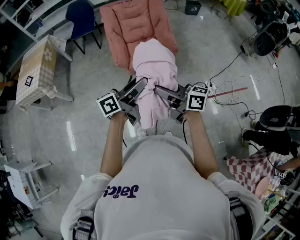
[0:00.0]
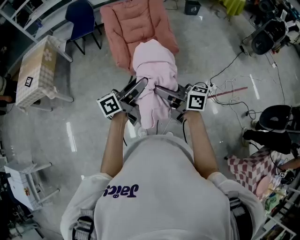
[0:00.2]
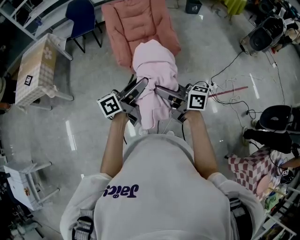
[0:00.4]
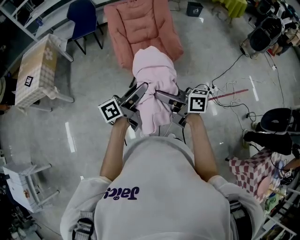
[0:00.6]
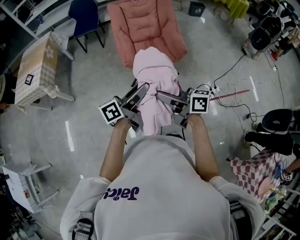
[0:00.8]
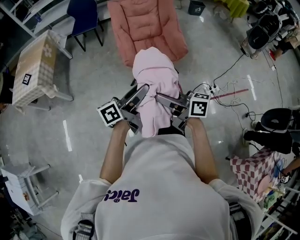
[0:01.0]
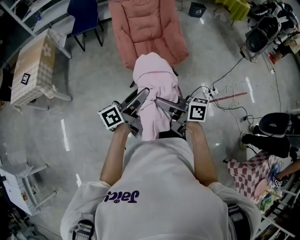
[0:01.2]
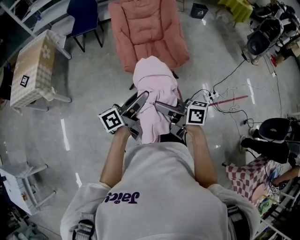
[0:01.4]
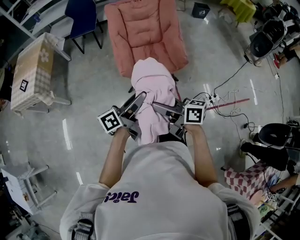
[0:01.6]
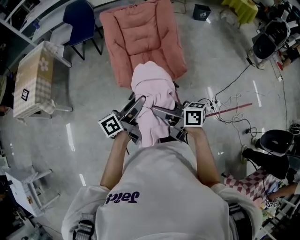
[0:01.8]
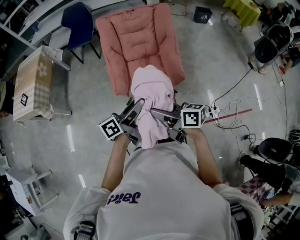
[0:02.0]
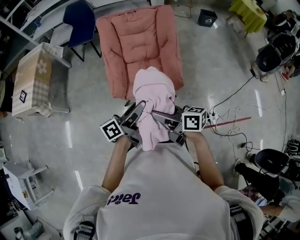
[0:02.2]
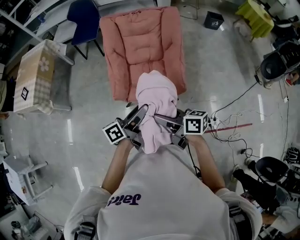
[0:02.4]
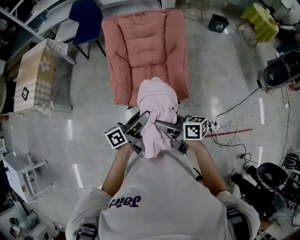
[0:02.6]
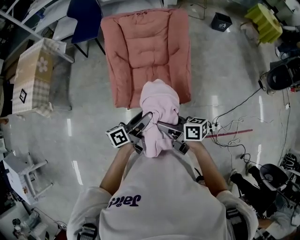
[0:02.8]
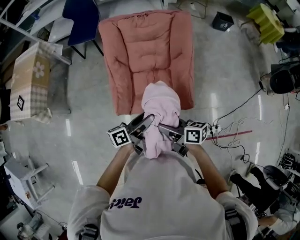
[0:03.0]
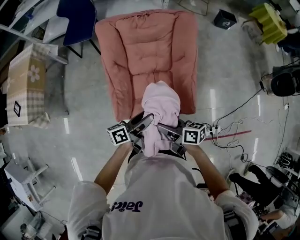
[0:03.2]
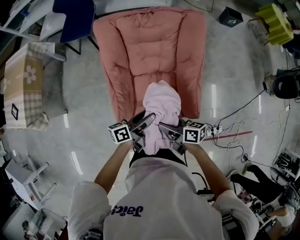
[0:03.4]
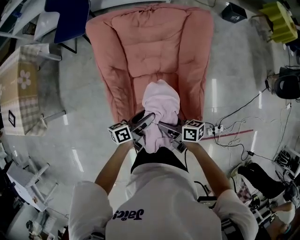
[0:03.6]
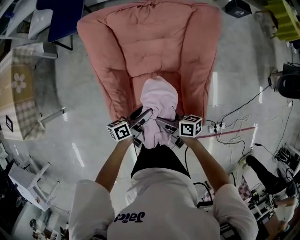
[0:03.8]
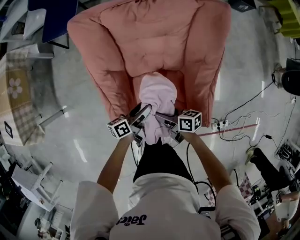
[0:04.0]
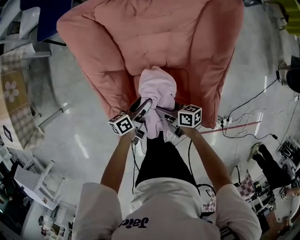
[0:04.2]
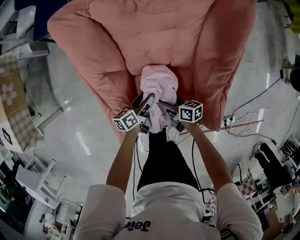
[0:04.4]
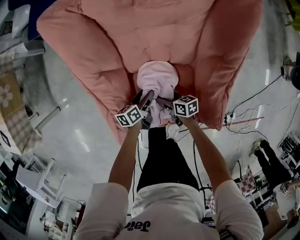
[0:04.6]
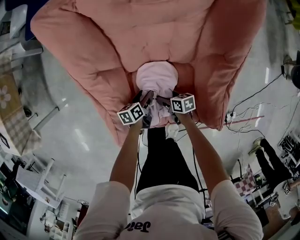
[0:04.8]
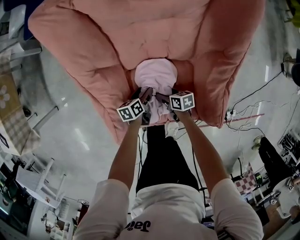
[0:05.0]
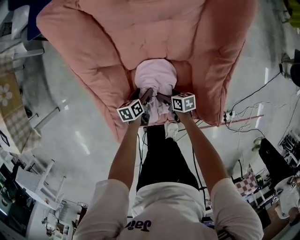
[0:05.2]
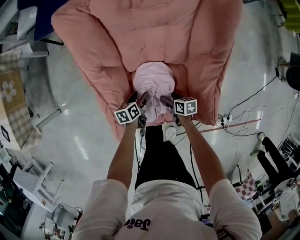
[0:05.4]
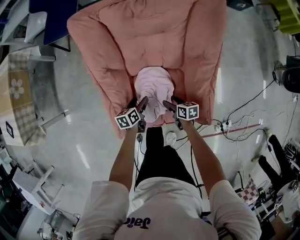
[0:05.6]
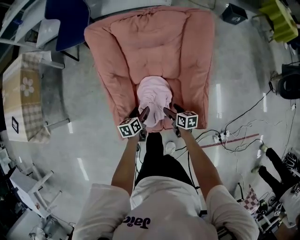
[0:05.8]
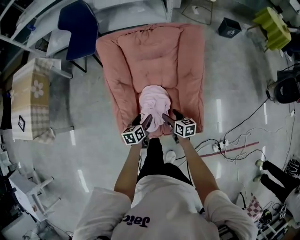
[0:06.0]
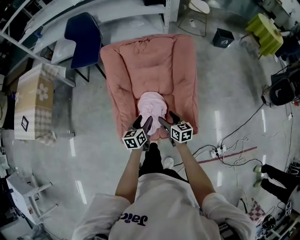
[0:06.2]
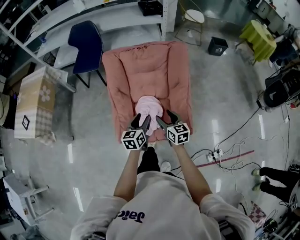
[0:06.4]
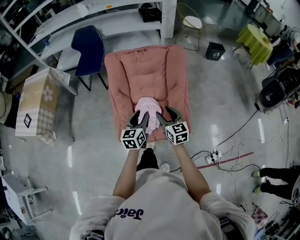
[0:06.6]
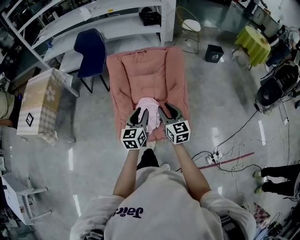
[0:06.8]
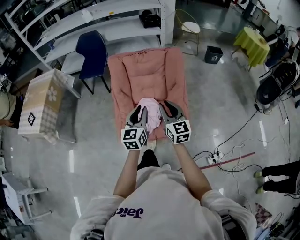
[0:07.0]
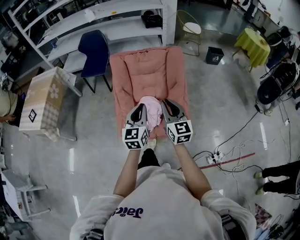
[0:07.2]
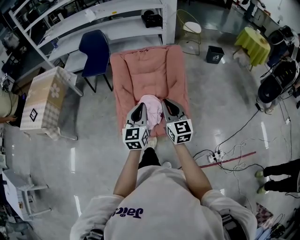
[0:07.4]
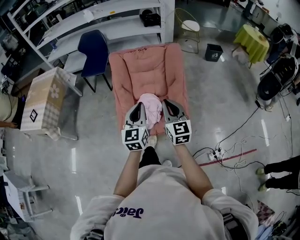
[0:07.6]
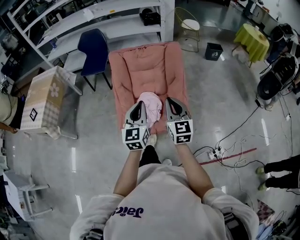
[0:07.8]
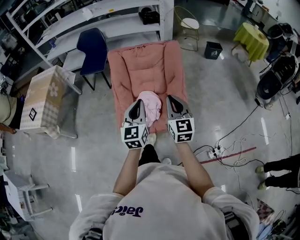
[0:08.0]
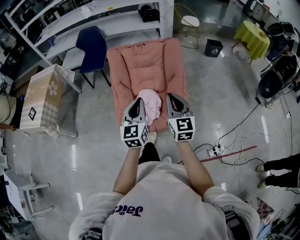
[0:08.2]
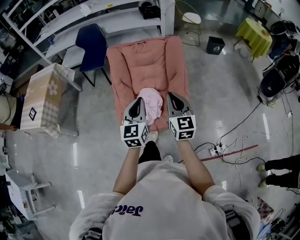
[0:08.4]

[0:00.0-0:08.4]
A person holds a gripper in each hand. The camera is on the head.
0:00.0 to 0:01.4: The left gripper moves to the left, forward and downward, about 10 cm, while the right gripper travels to the left and forward by some 10 cm.
0:01.4 to 0:02.8: Both grippers travel together forward and to the right, approximately 35 cm. The right gripper rotates roughly 20 degrees.
0:02.8 to 0:04.2: Both grippers travel together downward and forward, roughly 50 cm.
0:04.2 to 0:05.6: The right gripper is displaced downward and to the right by about 10 cm, and turns by about 20 degrees, while the left gripper goes about 5 cm downward, and rotates about 30 degrees.
0:05.6 to 0:07.0: The right gripper moves upward, roughly 50 cm, tilts its fingers roughly 40 degrees upward, and closes up, while the left gripper moves upward and backward, about 50 cm, tilts its fingers roughly 40 degrees upward, and closes up.

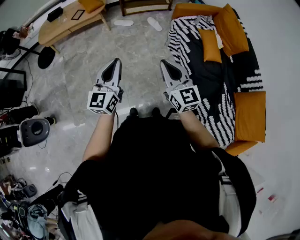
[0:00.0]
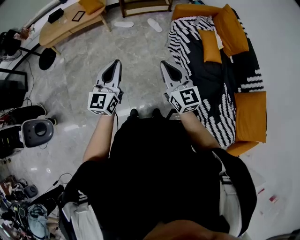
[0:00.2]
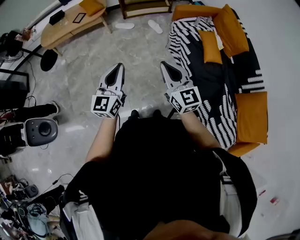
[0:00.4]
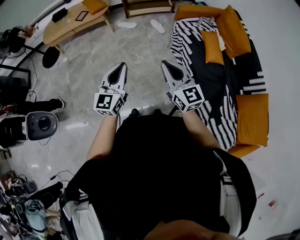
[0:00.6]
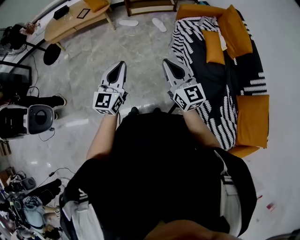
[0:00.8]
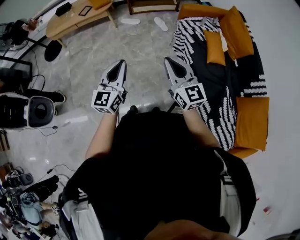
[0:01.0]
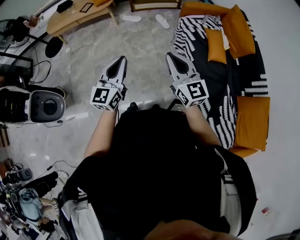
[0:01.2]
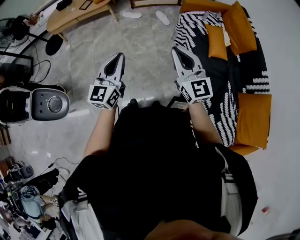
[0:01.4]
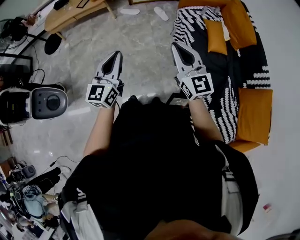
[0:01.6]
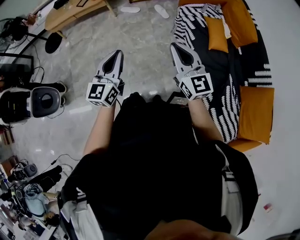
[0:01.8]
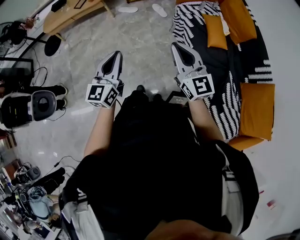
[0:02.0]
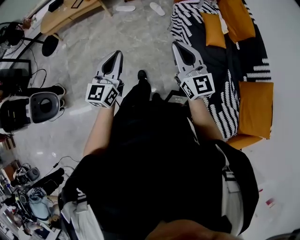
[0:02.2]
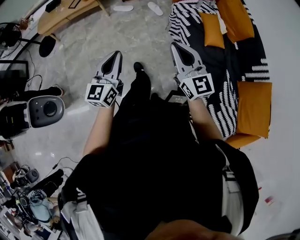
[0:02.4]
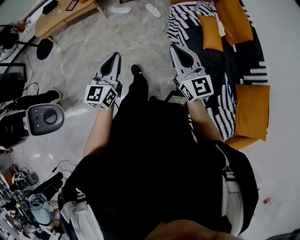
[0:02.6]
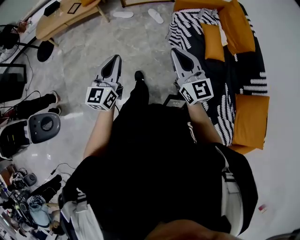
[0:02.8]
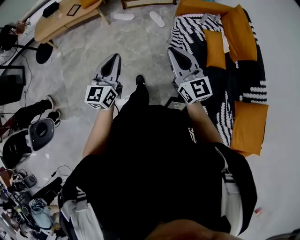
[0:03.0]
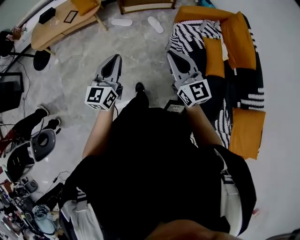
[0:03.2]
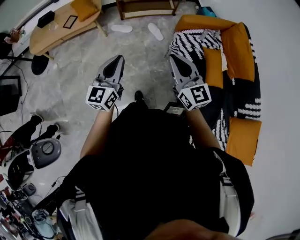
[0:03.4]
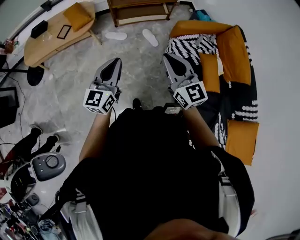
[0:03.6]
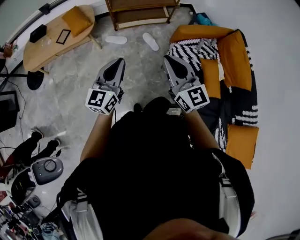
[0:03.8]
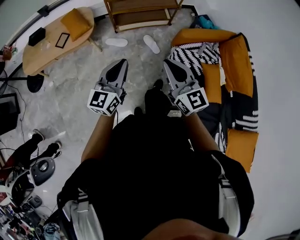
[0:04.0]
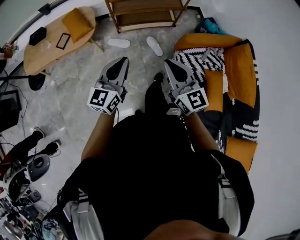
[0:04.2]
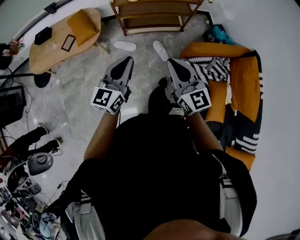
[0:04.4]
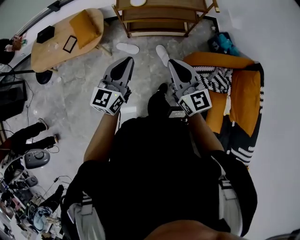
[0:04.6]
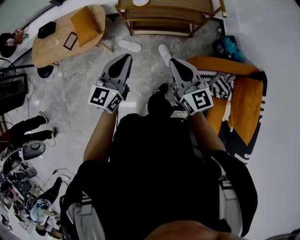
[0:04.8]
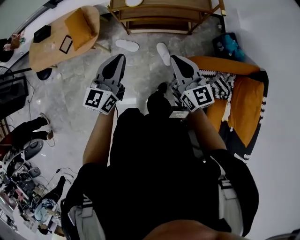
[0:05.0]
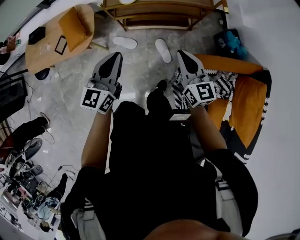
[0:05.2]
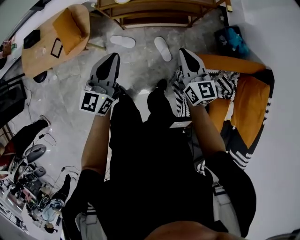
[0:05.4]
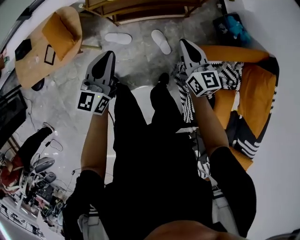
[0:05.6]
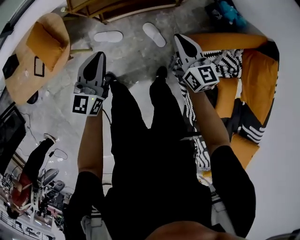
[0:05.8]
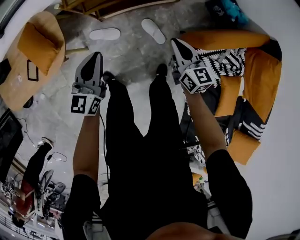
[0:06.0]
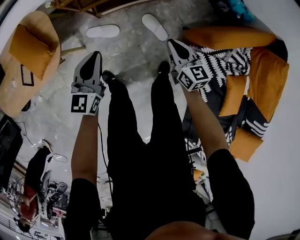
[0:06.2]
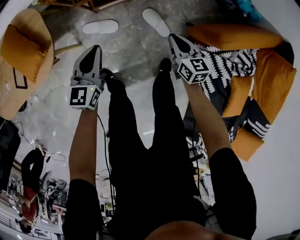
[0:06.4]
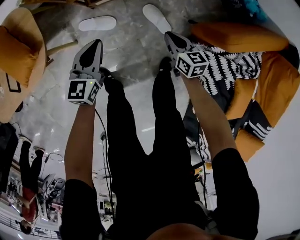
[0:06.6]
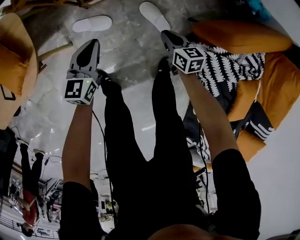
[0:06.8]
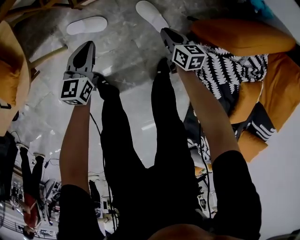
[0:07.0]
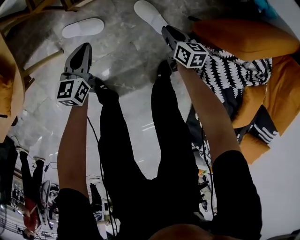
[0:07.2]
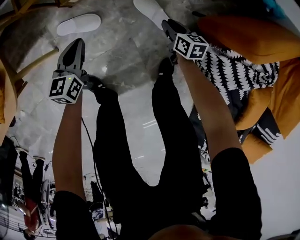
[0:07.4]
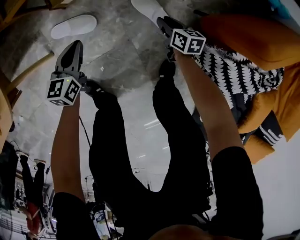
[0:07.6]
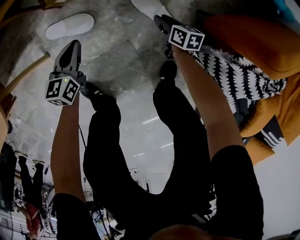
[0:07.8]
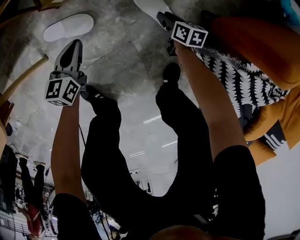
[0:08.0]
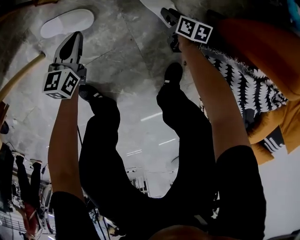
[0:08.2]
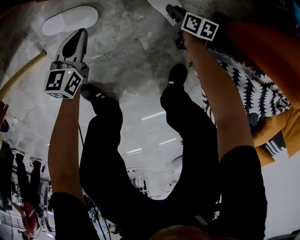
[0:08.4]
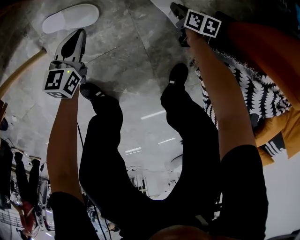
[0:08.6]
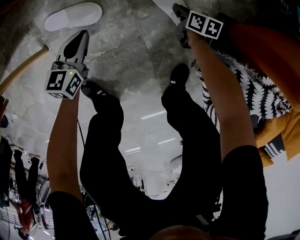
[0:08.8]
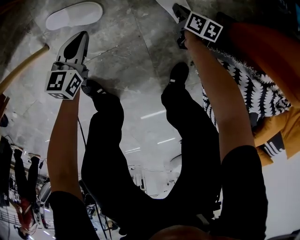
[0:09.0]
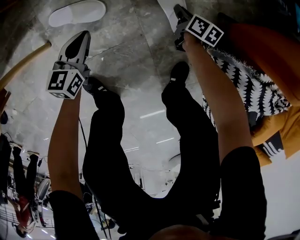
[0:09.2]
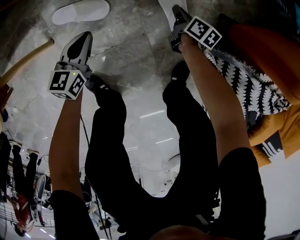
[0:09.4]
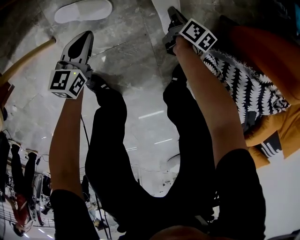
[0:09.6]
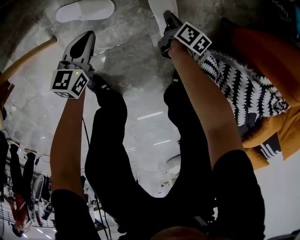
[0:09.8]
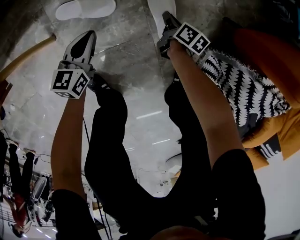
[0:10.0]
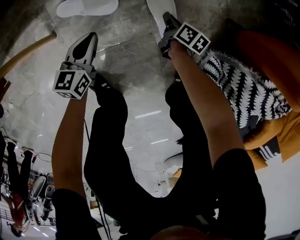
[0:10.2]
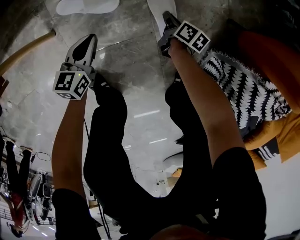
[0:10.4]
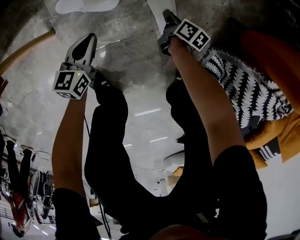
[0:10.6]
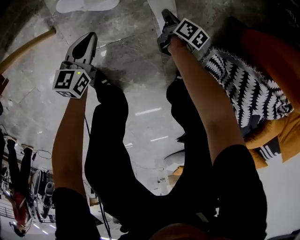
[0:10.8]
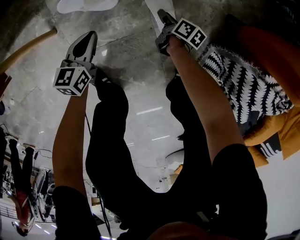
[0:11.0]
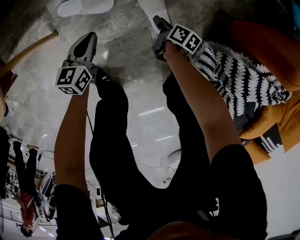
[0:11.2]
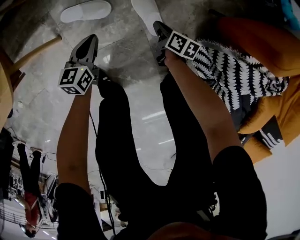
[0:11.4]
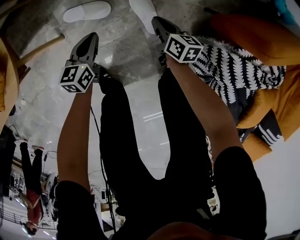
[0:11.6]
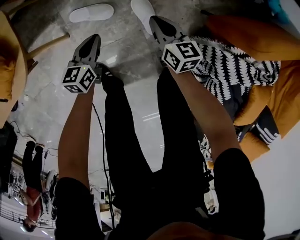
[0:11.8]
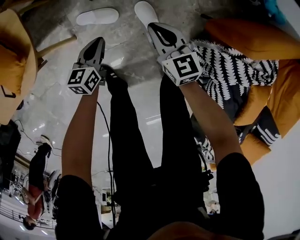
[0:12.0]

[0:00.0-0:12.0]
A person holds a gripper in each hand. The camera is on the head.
0:00.0 to 0:01.6: The left gripper heads to the right and backward, covering about 10 cm, while the right gripper heads to the right, covering about 10 cm.
0:01.6 to 0:03.0: The two grippers go some 15 cm forward.
0:03.0 to 0:04.4: The two grippers travel together, forward, some 40 cm.
0:04.4 to 0:06.0: Both grippers move downward and forward, roughly 40 cm. The right gripper changes its angle by approximately 30 degrees.
0:06.0 to 0:07.6: Both grippers travel together downward, roughly 50 cm. The left gripper changes its angle by some 20 degrees, while the right gripper changes its angle by about 30 degrees, and opens up.
0:07.6 to 0:09.0: Both grippers travel together downward, some 10 cm. The right gripper closes its fingers.
0:09.0 to 0:10.4: The left gripper travels backward by some 5 cm. Meanwhile the right gripper shifts about 10 cm to the left and backward.
0:10.4 to 0:12.0: The left gripper travels upward by approximately 20 cm, while the right gripper goes approximately 40 cm upward, rotates around the line of its fingers by approximately 60 degrees, counterclockwise from behind, and opens, then closes once more.

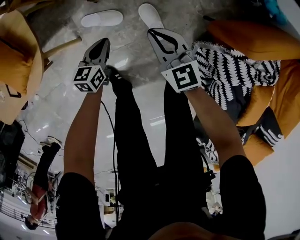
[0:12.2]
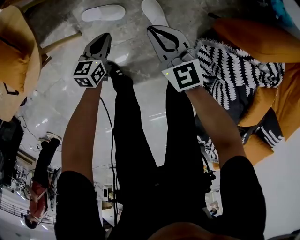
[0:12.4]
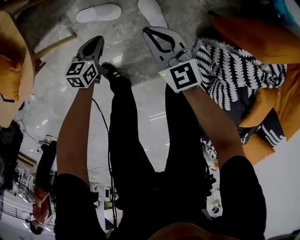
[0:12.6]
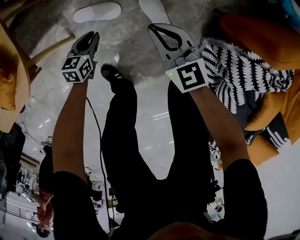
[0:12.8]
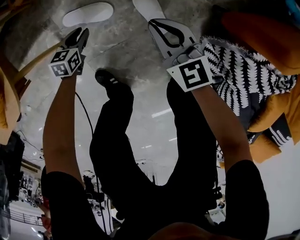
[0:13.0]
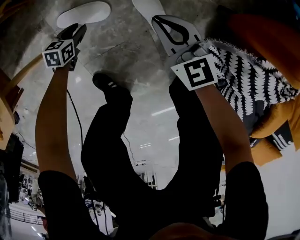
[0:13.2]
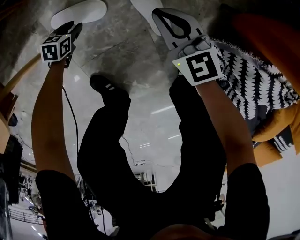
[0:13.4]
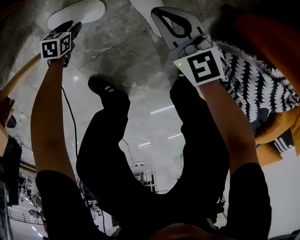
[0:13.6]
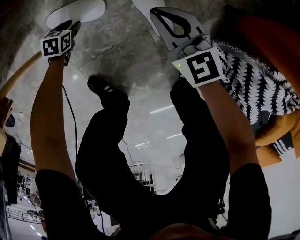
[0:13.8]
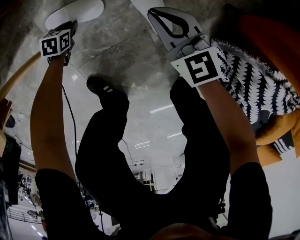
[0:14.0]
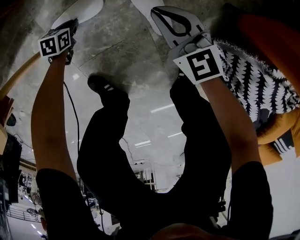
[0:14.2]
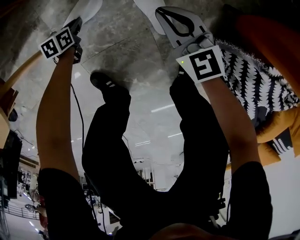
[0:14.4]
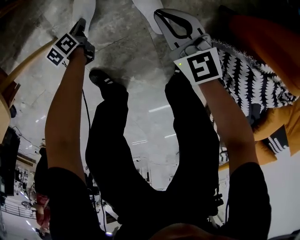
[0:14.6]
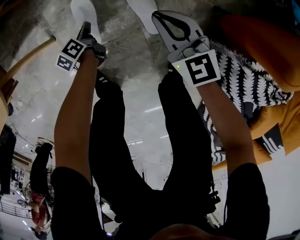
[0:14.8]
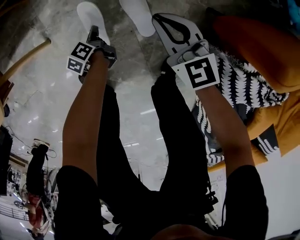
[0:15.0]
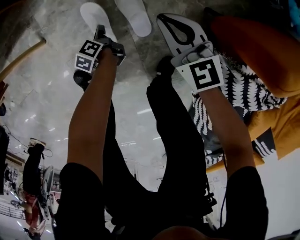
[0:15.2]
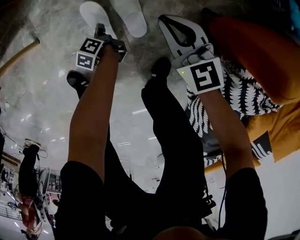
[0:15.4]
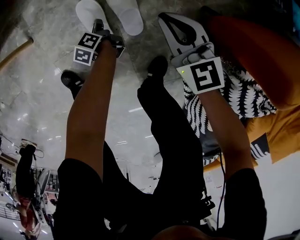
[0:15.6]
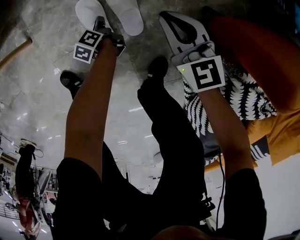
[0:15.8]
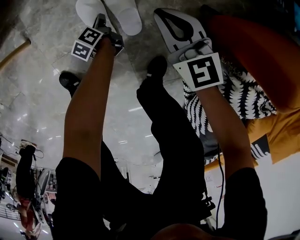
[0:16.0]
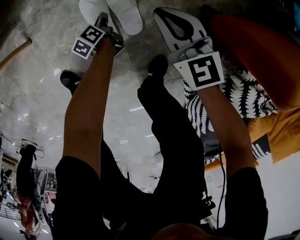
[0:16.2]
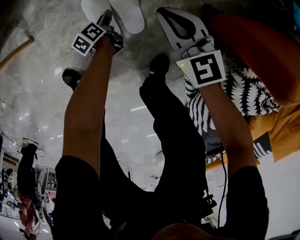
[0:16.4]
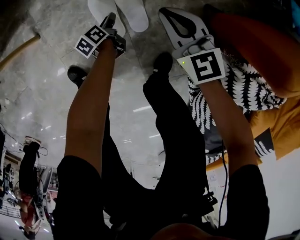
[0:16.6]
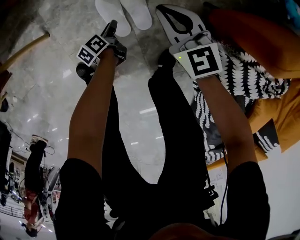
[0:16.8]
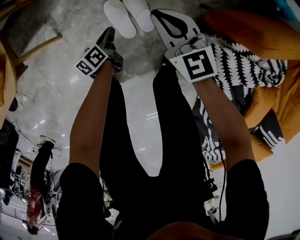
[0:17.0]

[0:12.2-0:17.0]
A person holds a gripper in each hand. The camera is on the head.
0:12.2 to 0:13.8: The left gripper is displaced downward by some 35 cm, points its fingers about 30 degrees further downward, and opens up; the right gripper heads downward, covering approximately 20 cm.
0:13.8 to 0:15.4: The right gripper ends up roughly 10 cm from where it was. The left gripper moves some 10 cm upward and comes back, rolls counterclockwise, seen from behind, by roughly 80 degrees, and closes.
0:15.4 to 0:17.0: The grippers both shift upward by some 15 cm. The left gripper rotates roughly 40 degrees, and opens and closes again.
